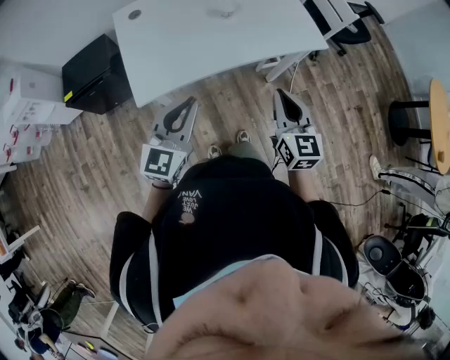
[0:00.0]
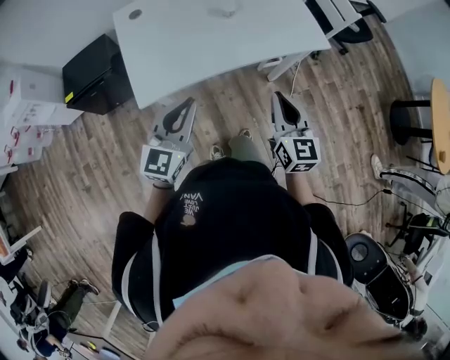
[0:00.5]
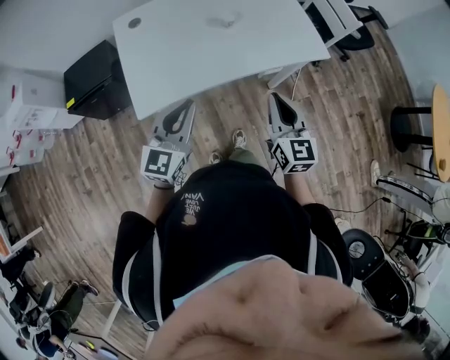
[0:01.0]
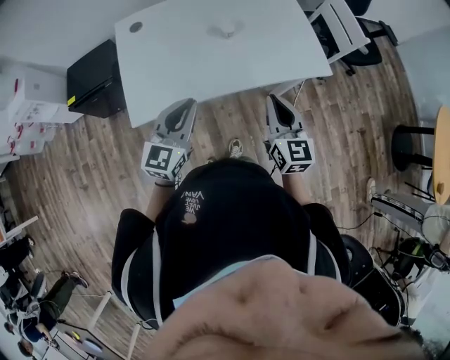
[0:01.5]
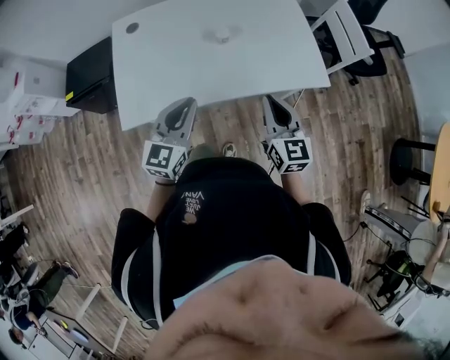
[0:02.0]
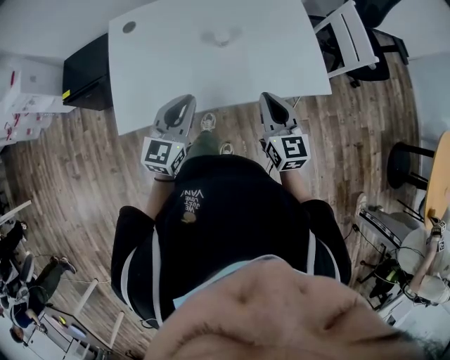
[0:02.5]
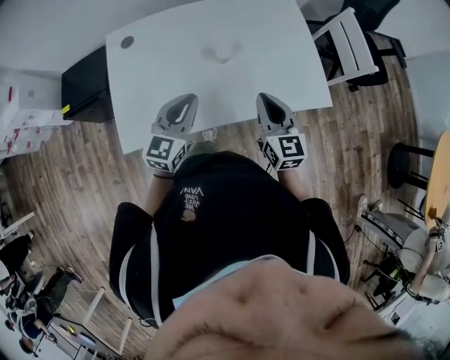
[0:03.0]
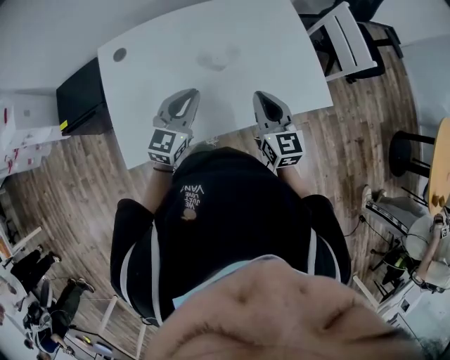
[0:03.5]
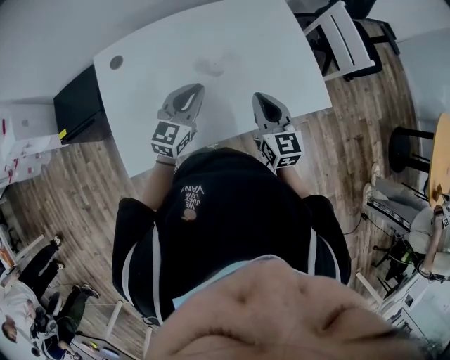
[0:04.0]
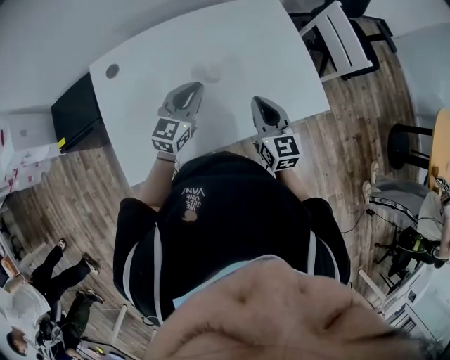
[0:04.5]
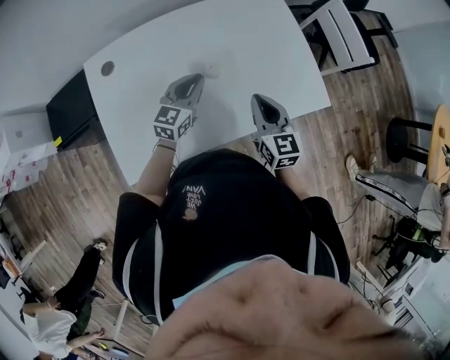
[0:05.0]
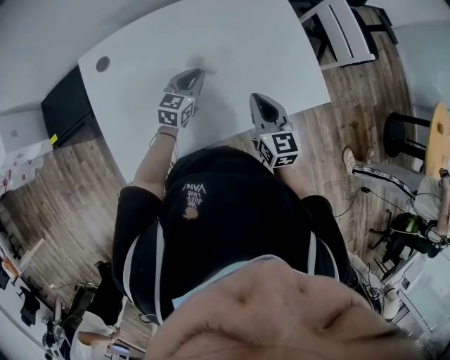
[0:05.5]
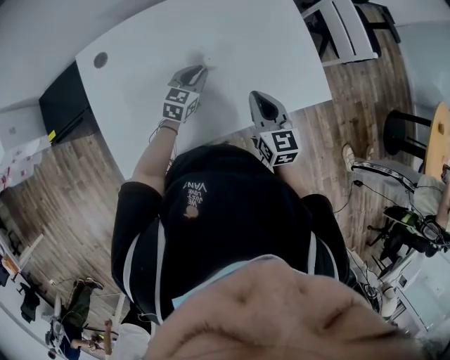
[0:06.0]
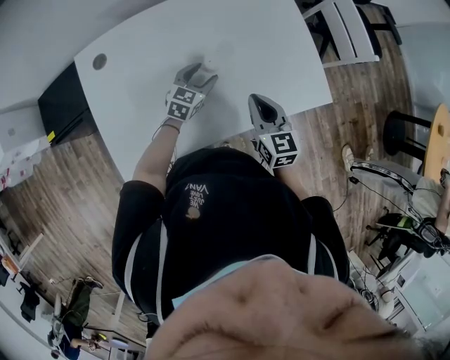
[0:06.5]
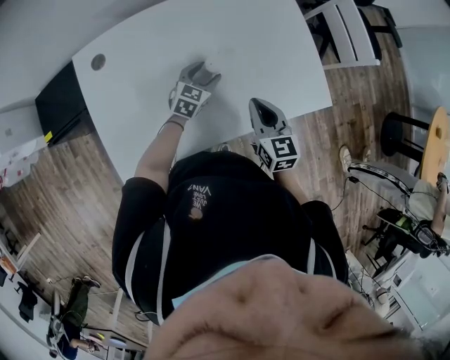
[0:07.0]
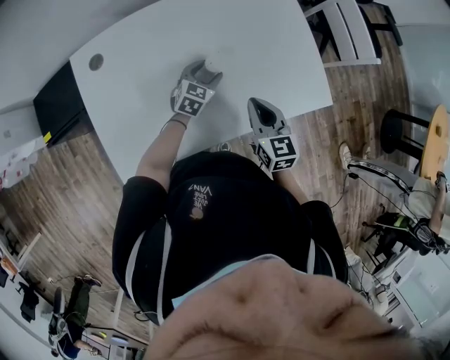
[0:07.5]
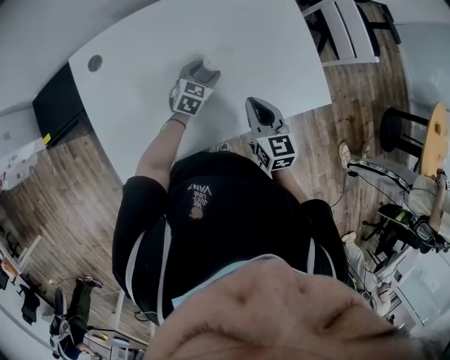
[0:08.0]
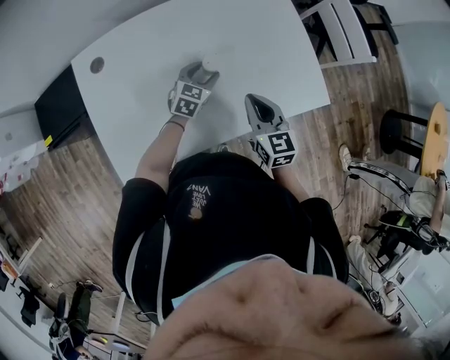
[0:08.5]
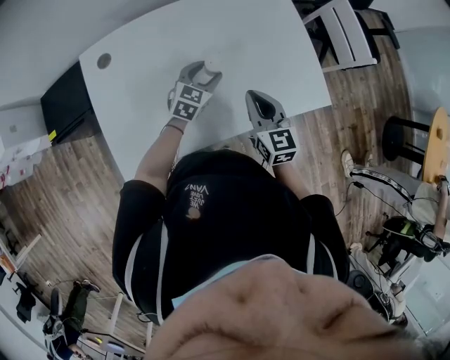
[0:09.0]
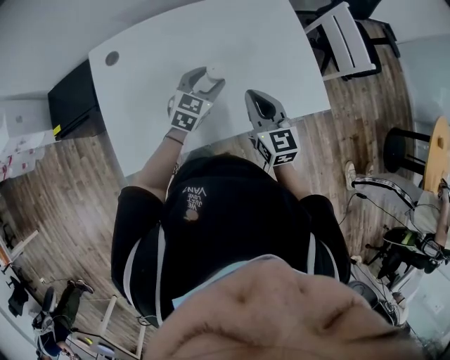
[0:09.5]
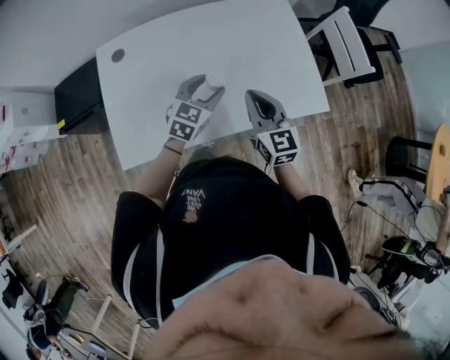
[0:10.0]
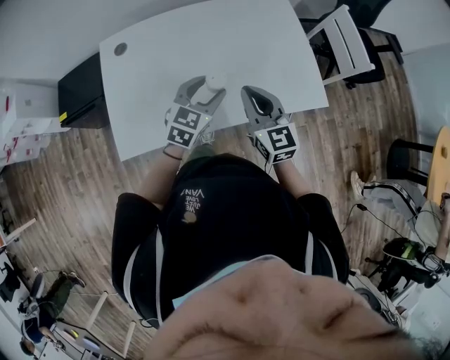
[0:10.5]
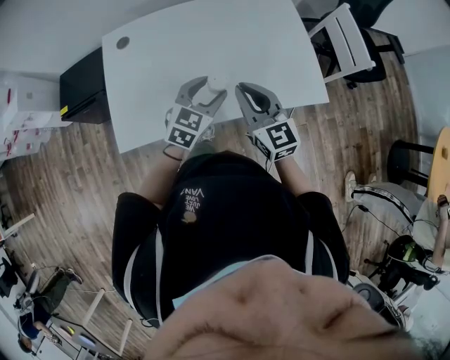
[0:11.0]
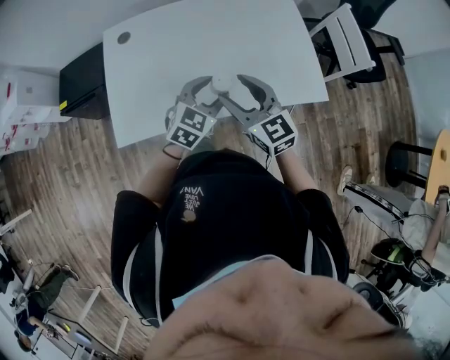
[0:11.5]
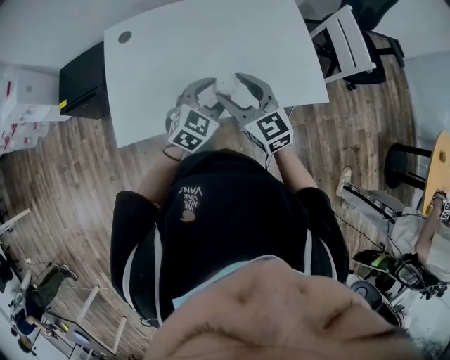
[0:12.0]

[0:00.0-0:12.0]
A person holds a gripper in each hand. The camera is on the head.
0:00.0 to 0:02.0: Both grippers travel together forward, approximately 15 cm.
0:02.0 to 0:04.0: The grippers both shift forward by some 20 cm.
0:04.0 to 0:06.0: The left gripper travels downward and forward by approximately 15 cm.
0:06.0 to 0:08.0: The left gripper changes place by roughly 5 cm, and opens its fingers.
0:08.0 to 0:10.0: The right gripper travels upward by approximately 10 cm; the left gripper shifts some 20 cm upward and backward.
0:10.0 to 0:12.0: The right gripper shifts some 10 cm to the left and backward, swivels about 20 degrees, and opens its fingers, while the left gripper shifts about 10 cm backward.

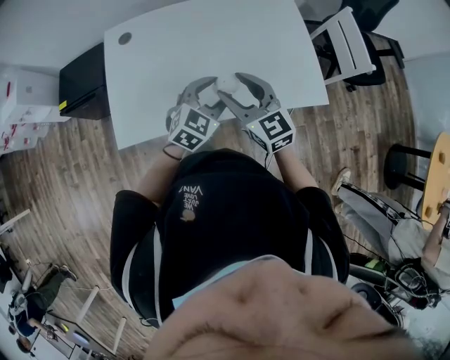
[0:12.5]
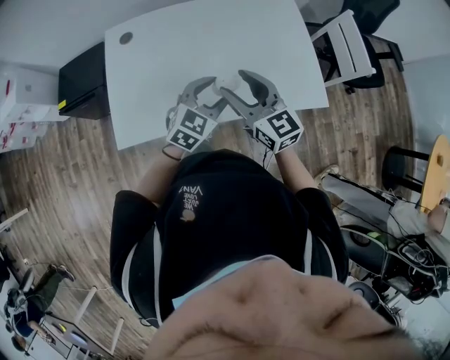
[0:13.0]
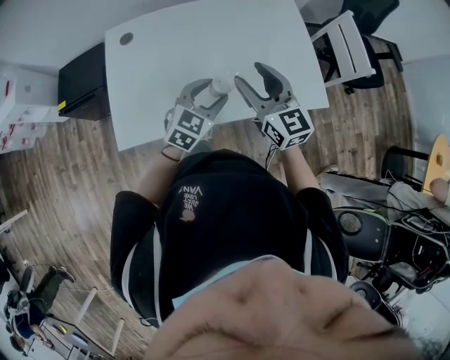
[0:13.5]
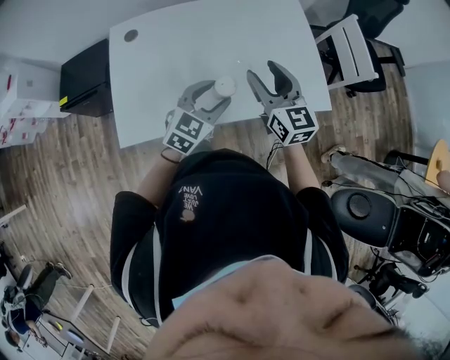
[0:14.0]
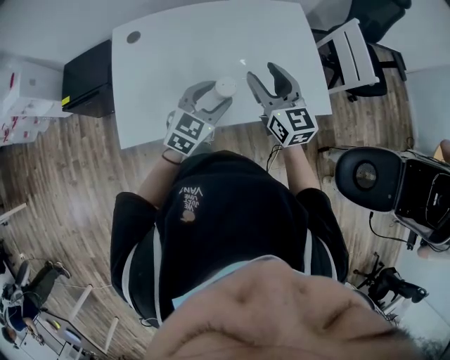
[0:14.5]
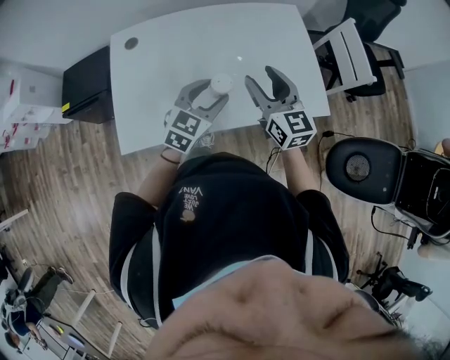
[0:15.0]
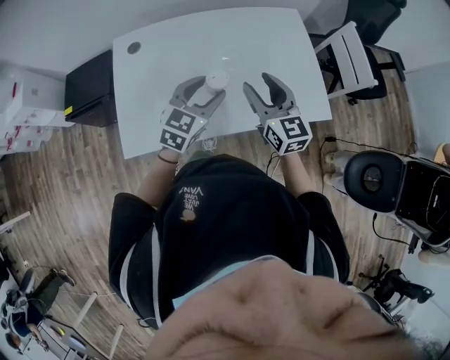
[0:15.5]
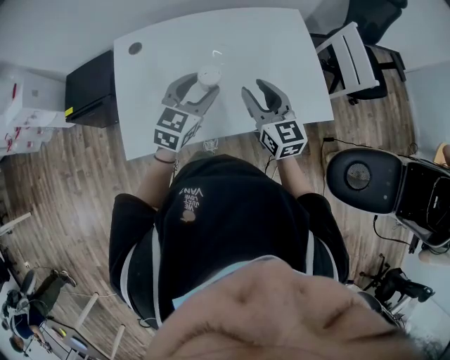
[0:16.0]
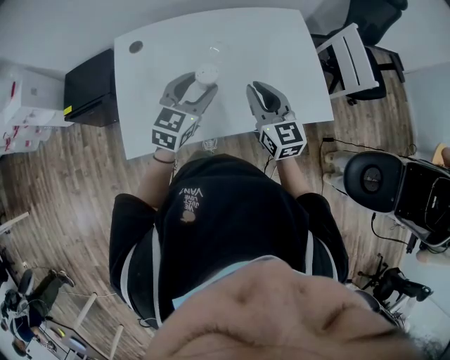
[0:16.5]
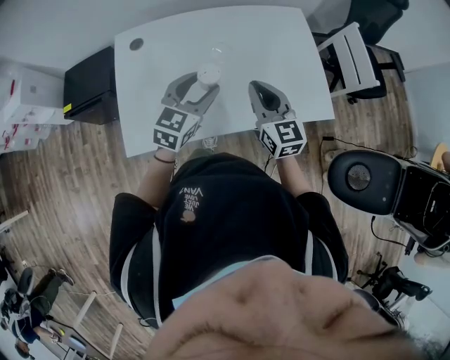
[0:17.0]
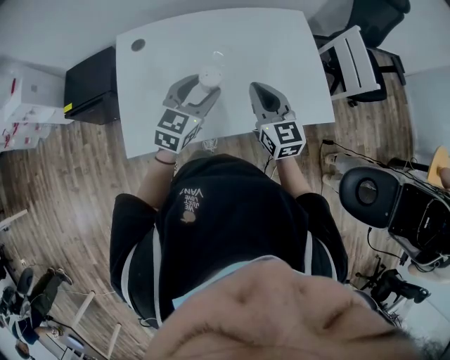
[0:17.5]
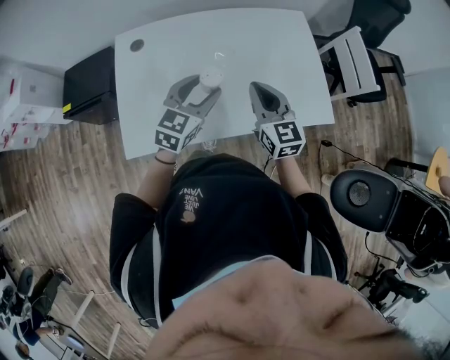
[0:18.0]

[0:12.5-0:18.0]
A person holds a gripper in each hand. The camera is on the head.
0:12.5 to 0:14.5: The right gripper heads forward, covering approximately 5 cm.
0:14.5 to 0:16.0: The left gripper goes about 5 cm to the left.
0:16.0 to 0:18.0: The right gripper closes its fingers.

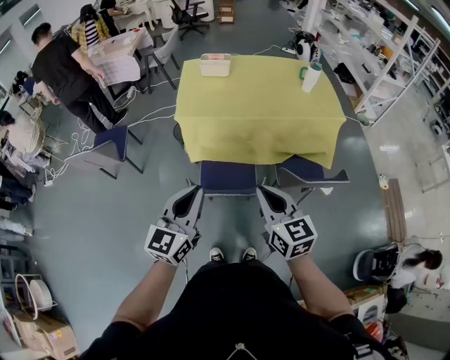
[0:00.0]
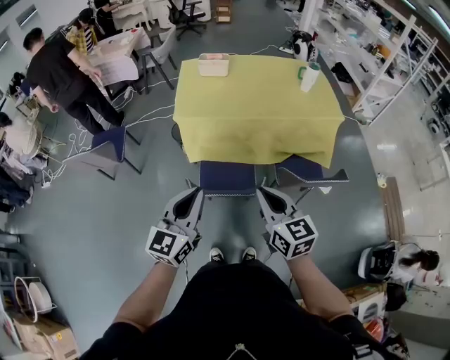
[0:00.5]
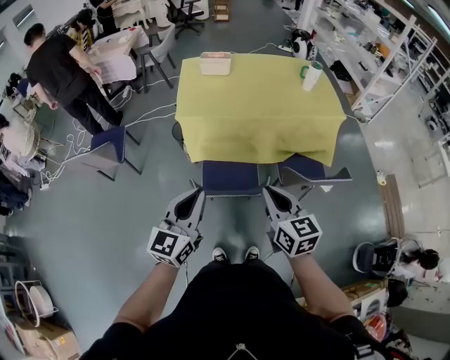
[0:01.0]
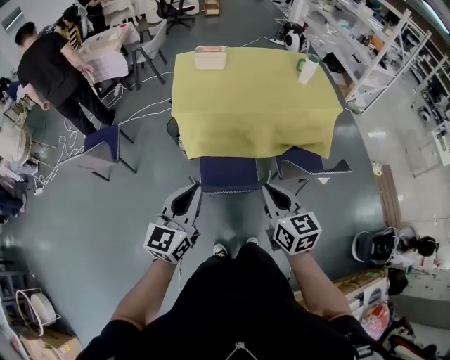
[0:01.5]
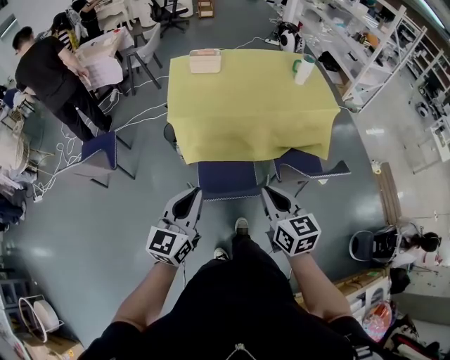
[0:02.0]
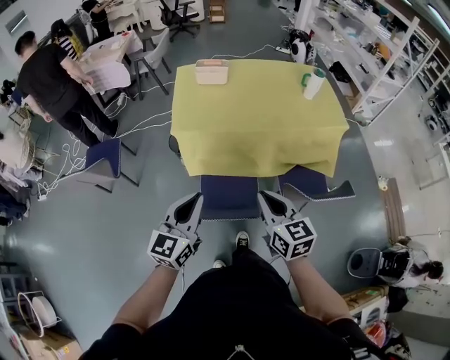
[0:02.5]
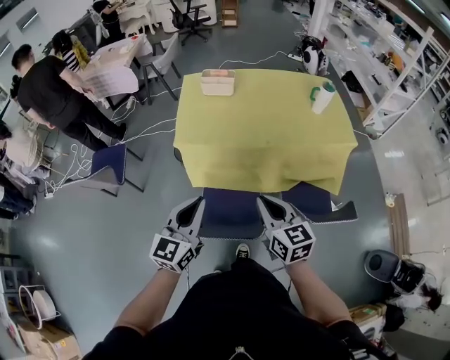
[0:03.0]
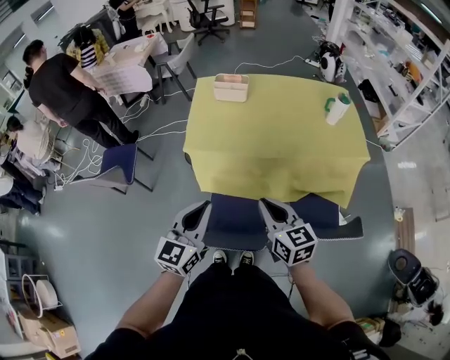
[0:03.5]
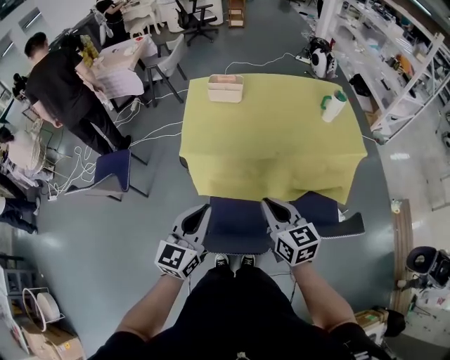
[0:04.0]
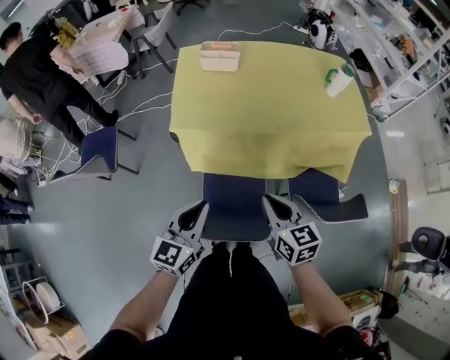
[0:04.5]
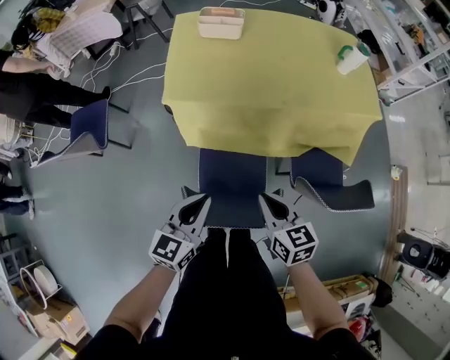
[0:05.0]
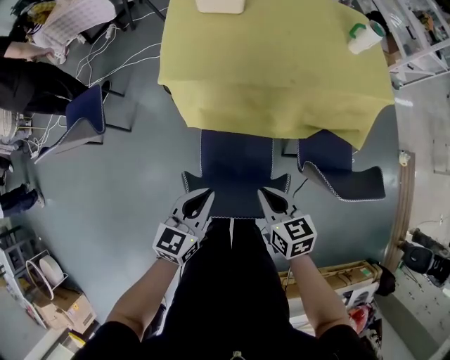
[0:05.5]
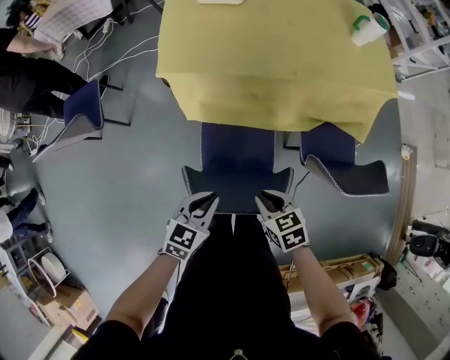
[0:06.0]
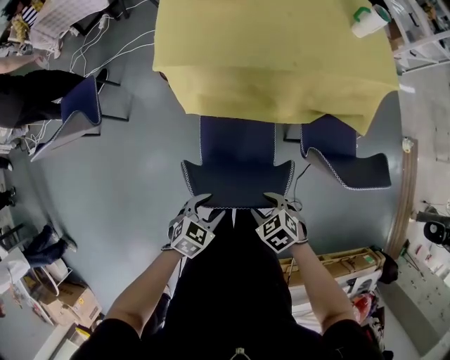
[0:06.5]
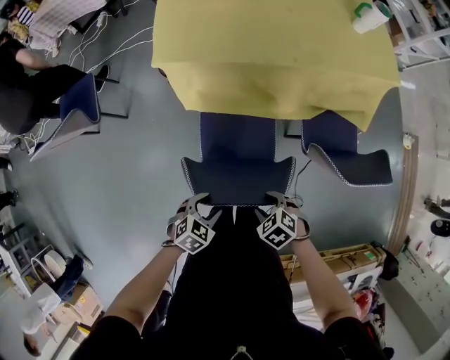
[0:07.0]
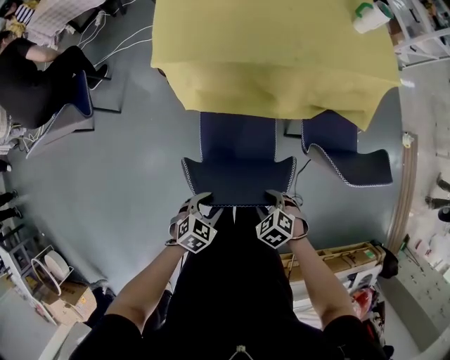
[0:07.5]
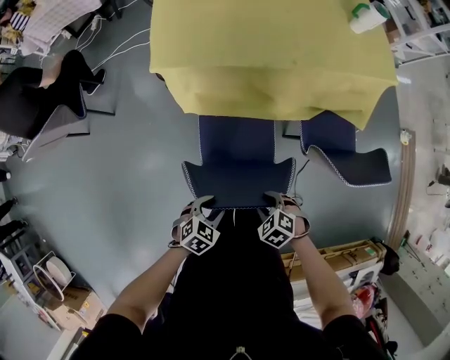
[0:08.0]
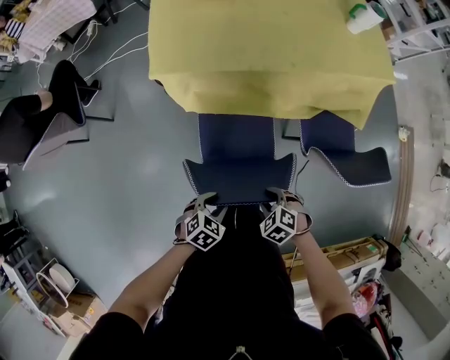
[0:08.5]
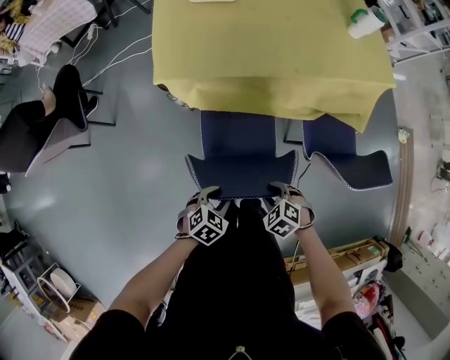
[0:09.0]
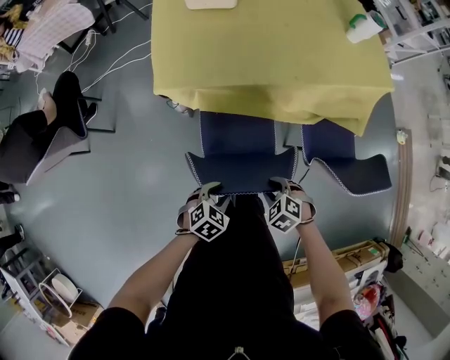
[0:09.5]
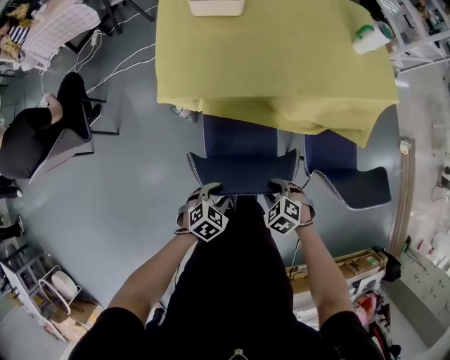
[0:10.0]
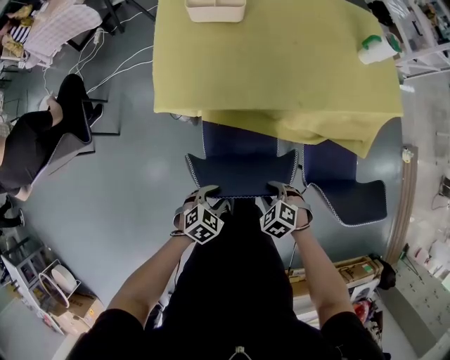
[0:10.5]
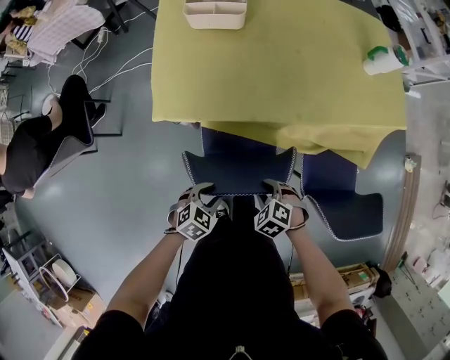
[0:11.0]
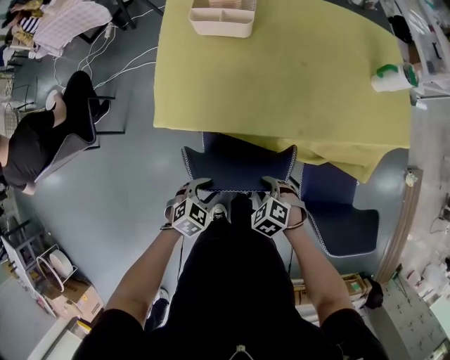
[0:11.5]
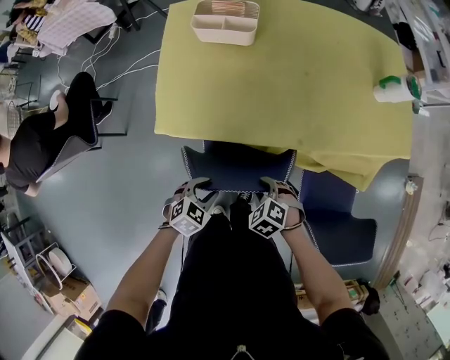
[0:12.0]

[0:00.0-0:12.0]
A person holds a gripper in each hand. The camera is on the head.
0:00.0 to 0:02.0: The right gripper moves about 5 cm. Meanwhile the left gripper shifts about 5 cm to the left.
0:02.0 to 0:04.0: Both grippers move forward, some 20 cm.
0:04.0 to 0:06.0: Both grippers travel together downward, about 30 cm. The left gripper tilts its fingers some 30 degrees downward. Meanwhile the right gripper angles its fingers downward, by some 30 degrees.
0:06.0 to 0:08.0: The grippers both shift downward by about 10 cm. The right gripper rotates some 40 degrees, and opens. Meanwhile the left gripper turns by some 30 degrees, and opens.
0:08.0 to 0:10.0: The left gripper changes place by some 15 cm. Meanwhile the right gripper ends up about 15 cm from where it was.
0:10.0 to 0:12.0: The grippers both shift forward by approximately 20 cm.
